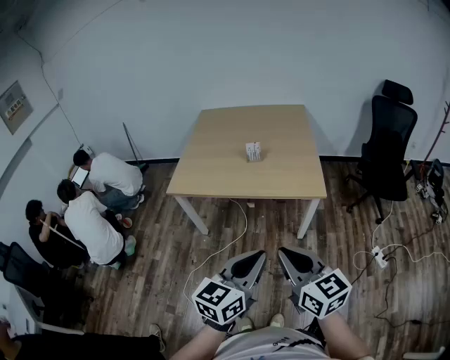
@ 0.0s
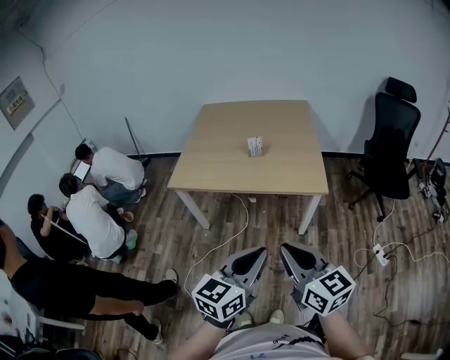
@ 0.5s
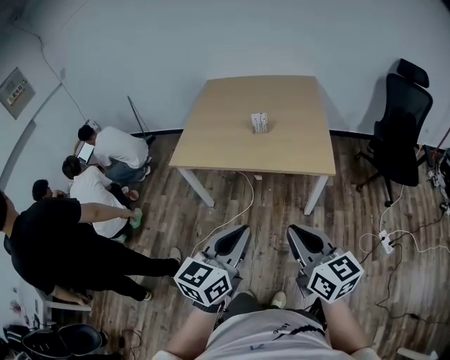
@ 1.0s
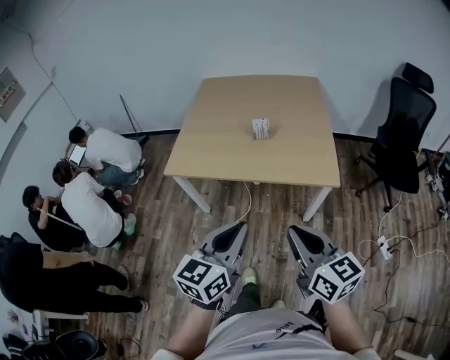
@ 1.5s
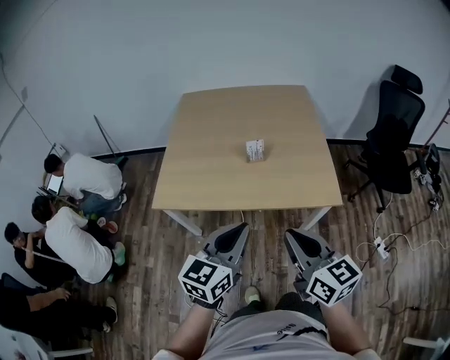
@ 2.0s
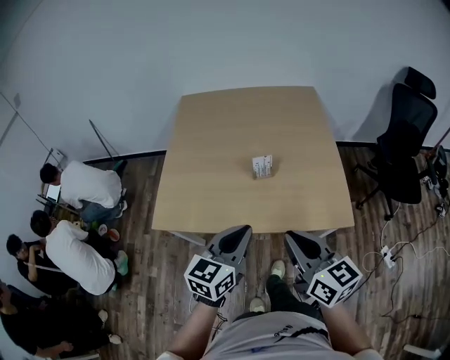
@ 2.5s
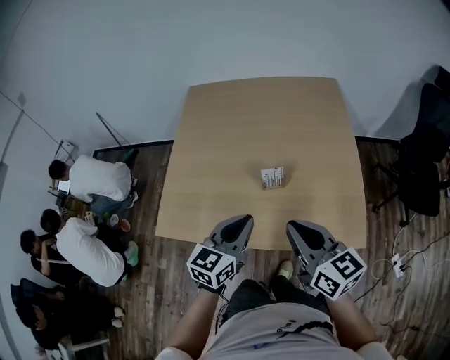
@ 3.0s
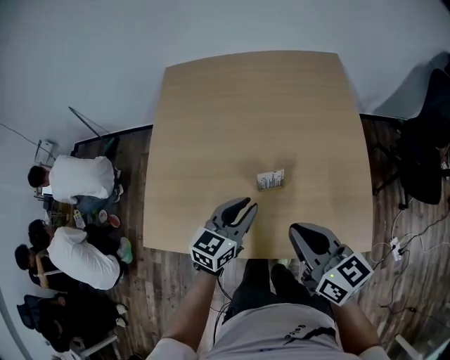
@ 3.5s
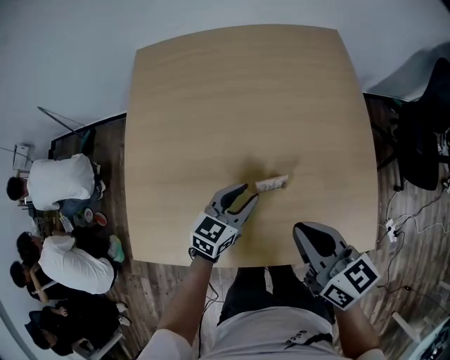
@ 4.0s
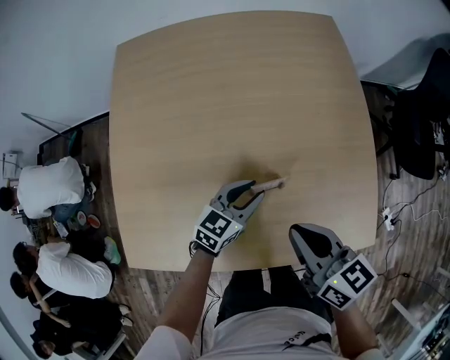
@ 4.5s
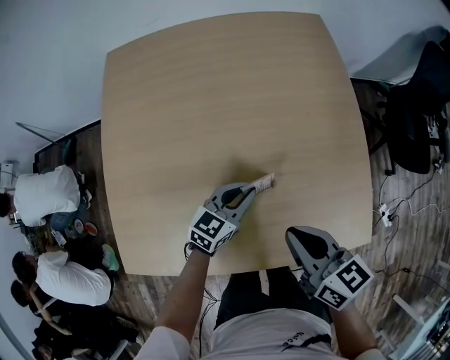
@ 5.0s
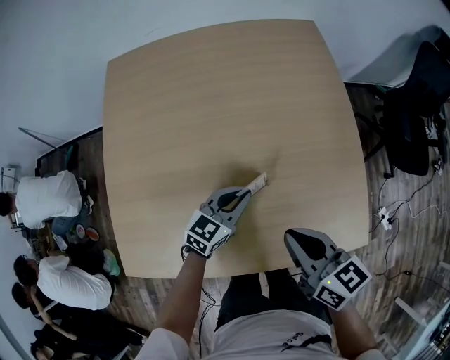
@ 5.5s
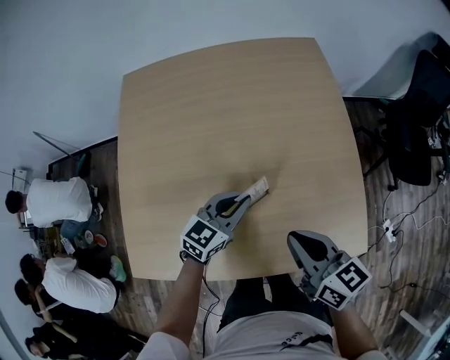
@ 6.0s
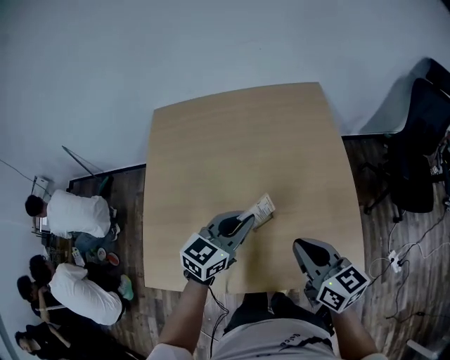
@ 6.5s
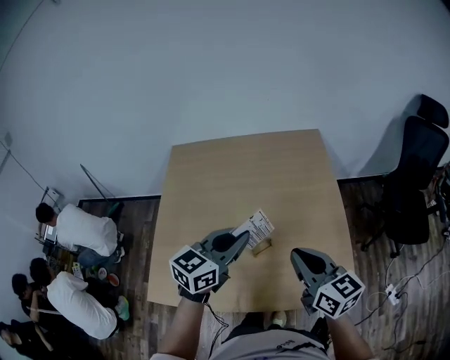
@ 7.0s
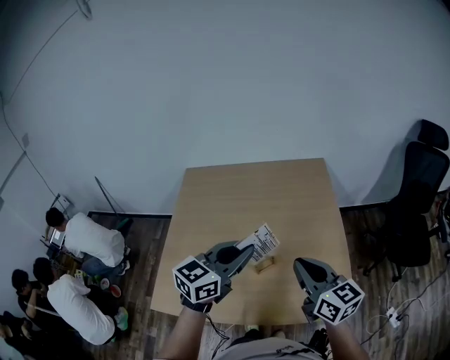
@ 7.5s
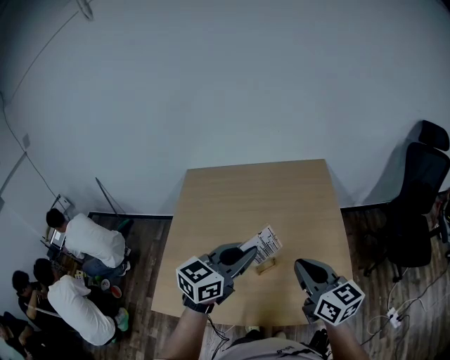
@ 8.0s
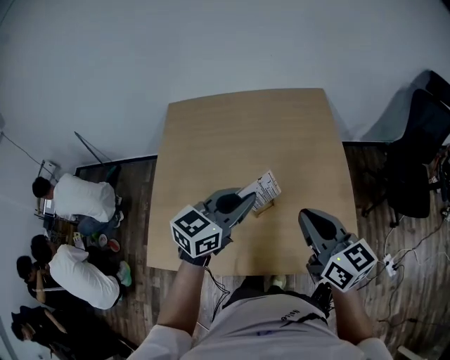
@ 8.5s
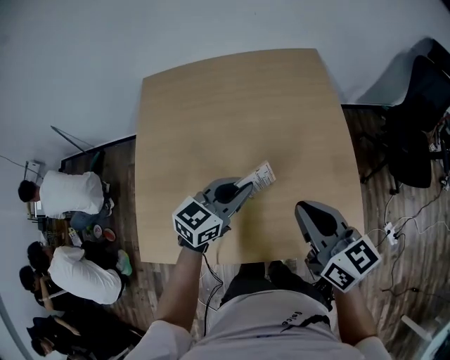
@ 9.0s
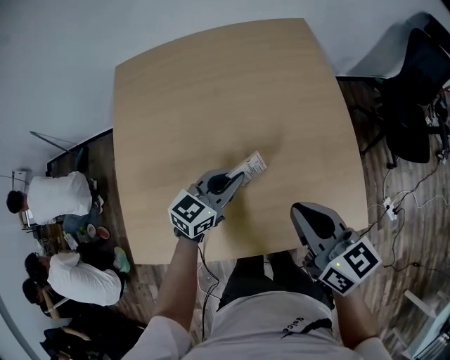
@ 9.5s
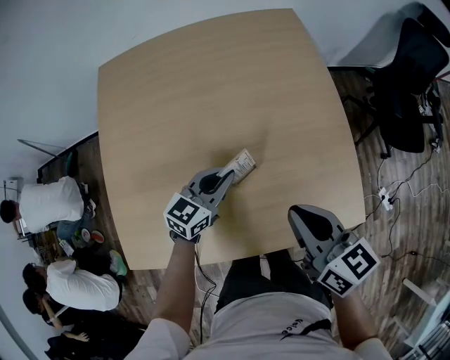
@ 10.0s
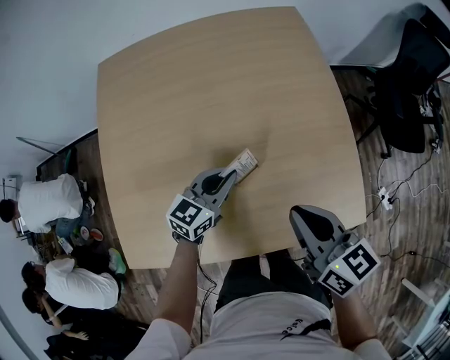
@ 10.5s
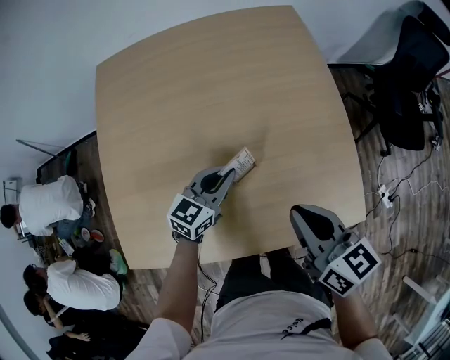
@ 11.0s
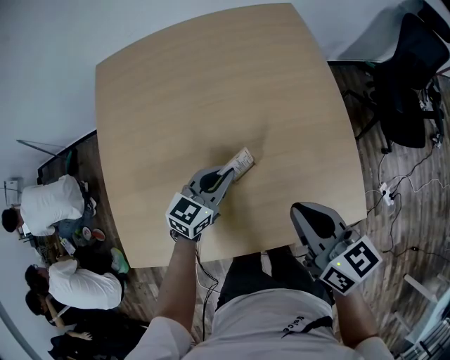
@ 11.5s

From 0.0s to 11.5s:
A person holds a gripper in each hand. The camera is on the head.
From 0.0s to 2.0s: The two grippers go approximately 25 cm forward.
From 2.0s to 4.0s: The two grippers travel together, forward, roughly 50 cm. The left gripper shifts some 30 cm downward, turns by about 20 degrees, and opens.
From 4.0s to 6.0s: The left gripper changes place by about 5 cm, and closes up.
From 6.0s to 7.5s: The right gripper moves upward, roughly 20 cm; the left gripper heads upward, covering some 30 cm.
From 7.5s to 9.5s: The right gripper heads downward, covering approximately 15 cm; the left gripper shifts roughly 30 cm downward.
From 9.5s to 11.5s: The grippers make only small movements.

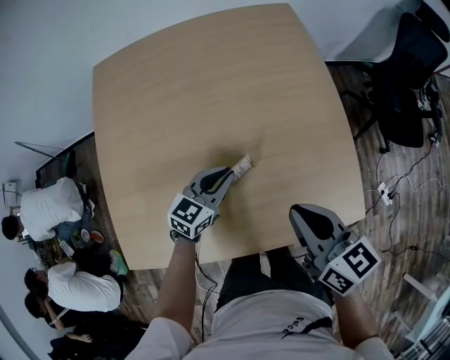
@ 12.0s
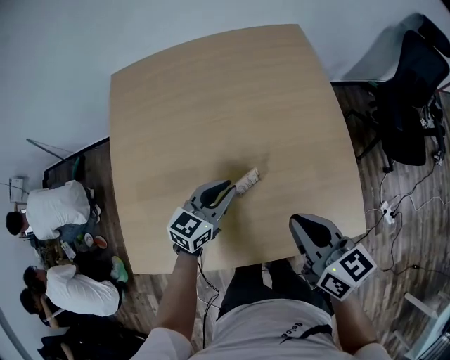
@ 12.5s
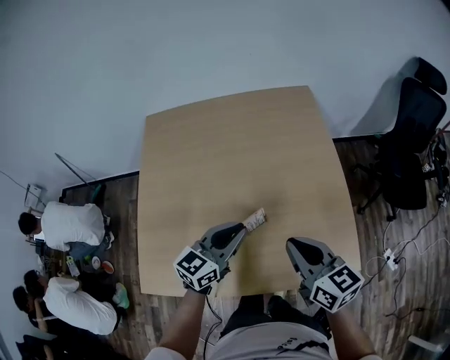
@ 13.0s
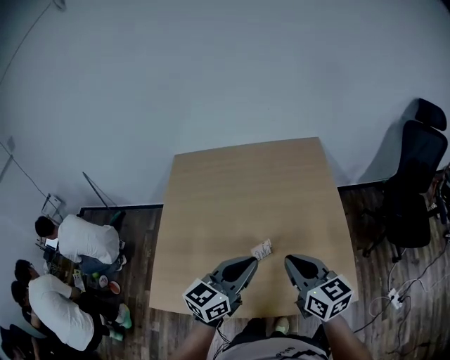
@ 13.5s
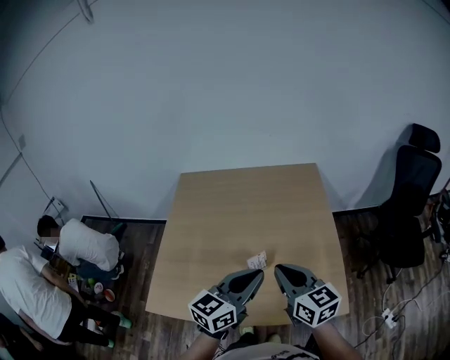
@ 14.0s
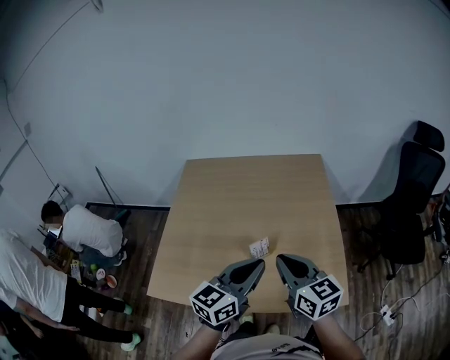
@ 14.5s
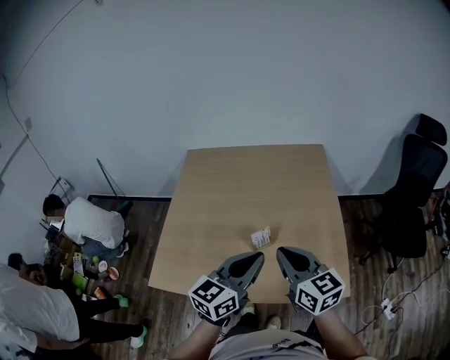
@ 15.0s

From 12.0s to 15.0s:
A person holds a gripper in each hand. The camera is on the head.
From 12.0s to 13.5s: The left gripper is displaced upward by about 25 cm, and changes its angle by some 20 degrees. Meanwhile the right gripper goes some 10 cm upward.
From 13.5s to 15.0s: The grippers both shift backward by some 5 cm.

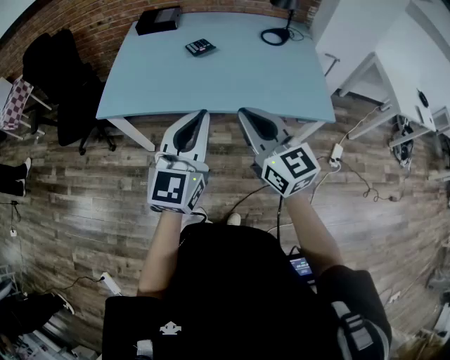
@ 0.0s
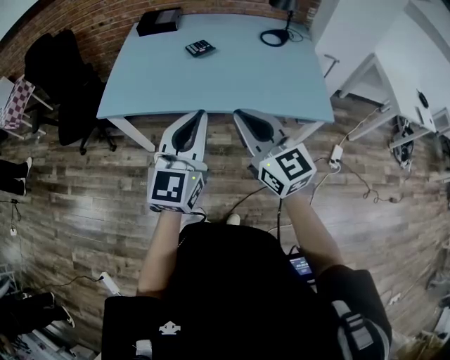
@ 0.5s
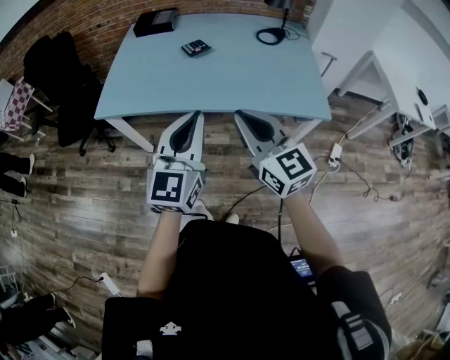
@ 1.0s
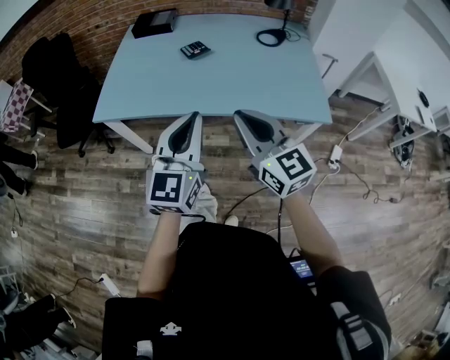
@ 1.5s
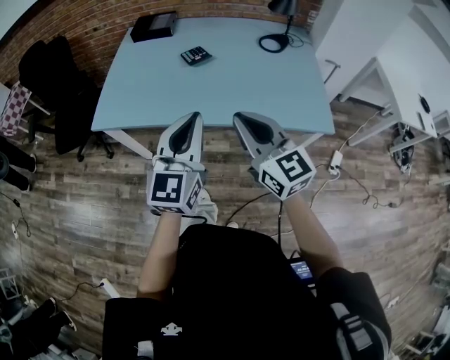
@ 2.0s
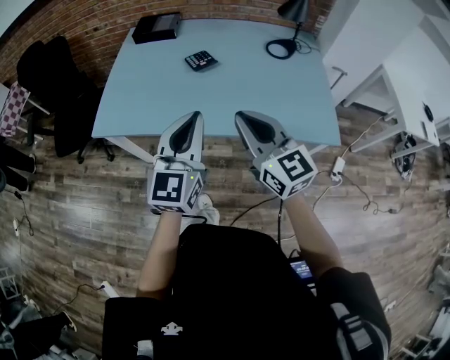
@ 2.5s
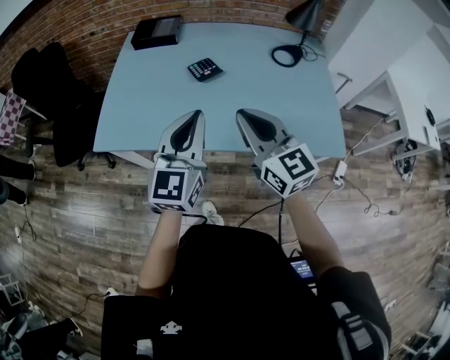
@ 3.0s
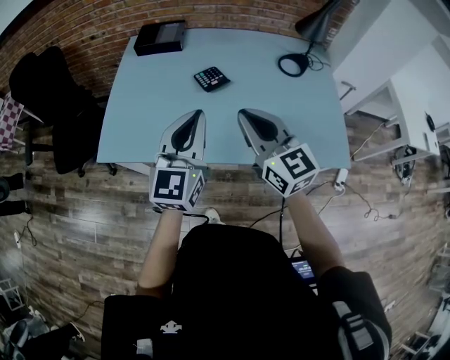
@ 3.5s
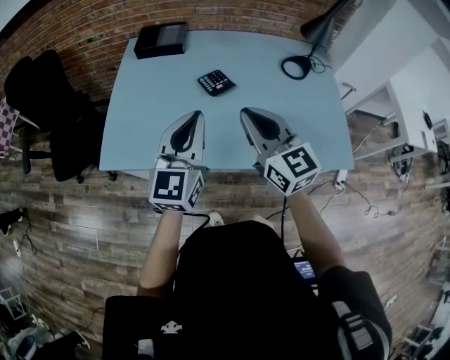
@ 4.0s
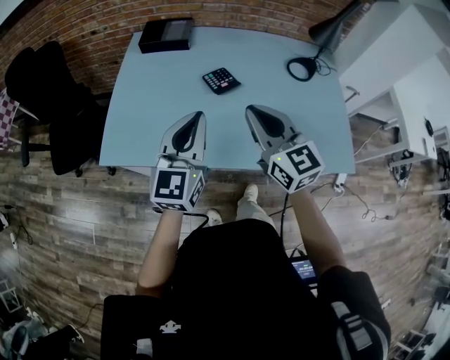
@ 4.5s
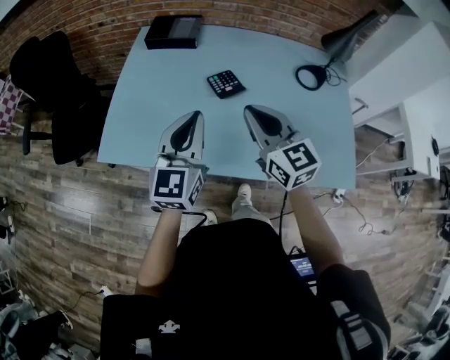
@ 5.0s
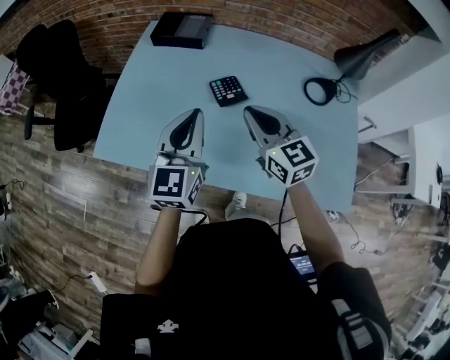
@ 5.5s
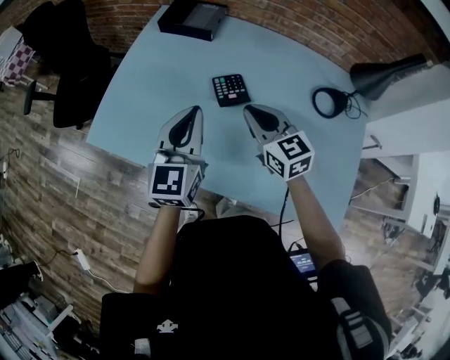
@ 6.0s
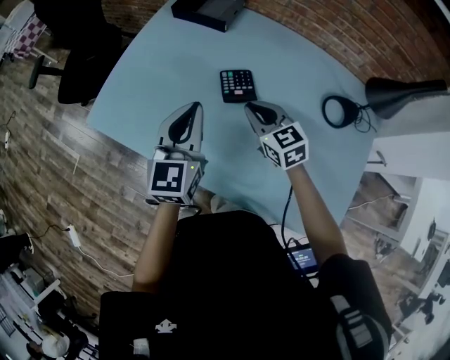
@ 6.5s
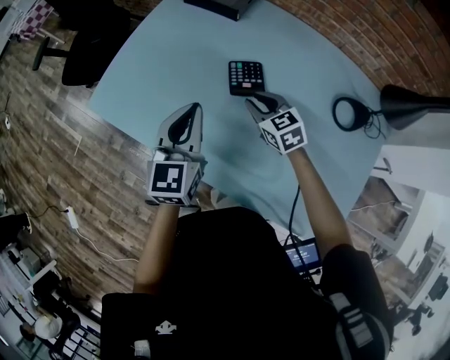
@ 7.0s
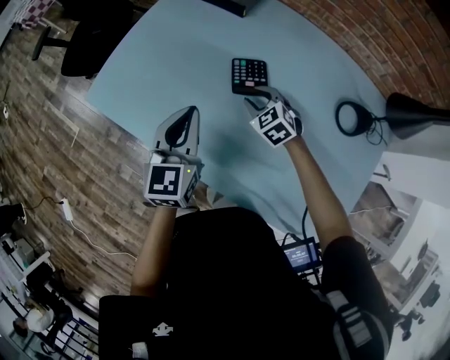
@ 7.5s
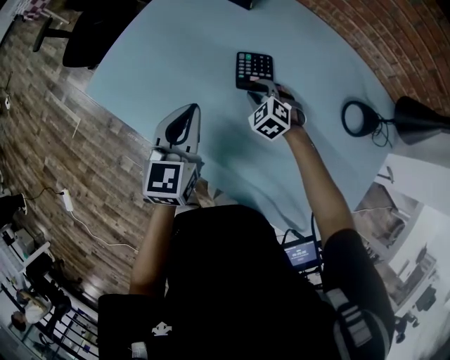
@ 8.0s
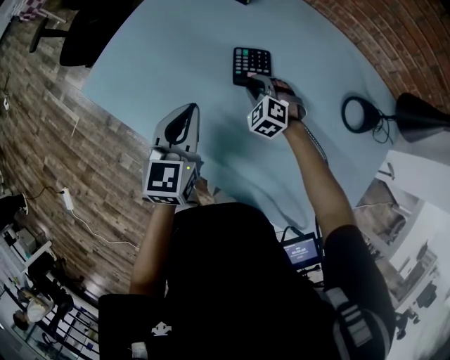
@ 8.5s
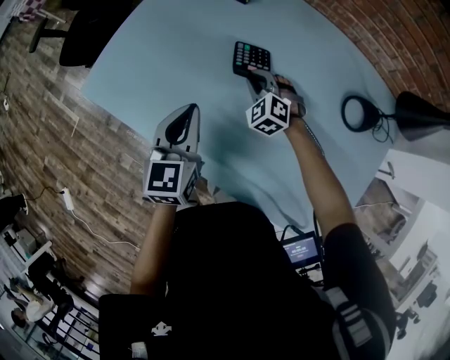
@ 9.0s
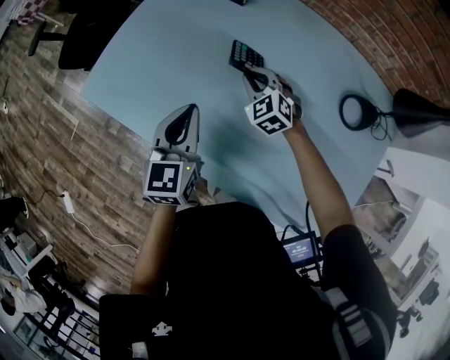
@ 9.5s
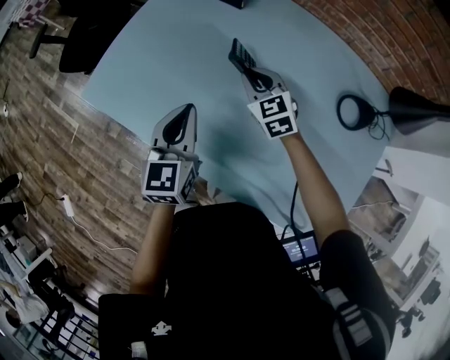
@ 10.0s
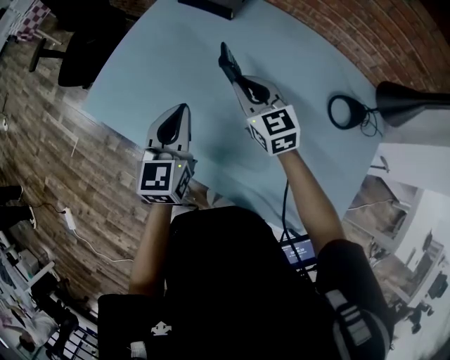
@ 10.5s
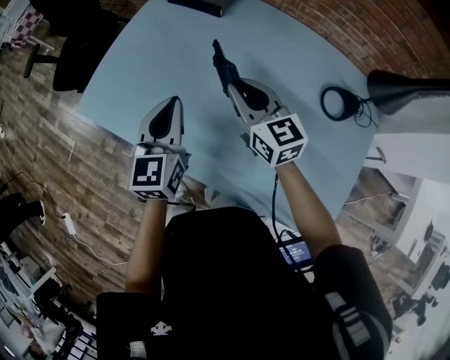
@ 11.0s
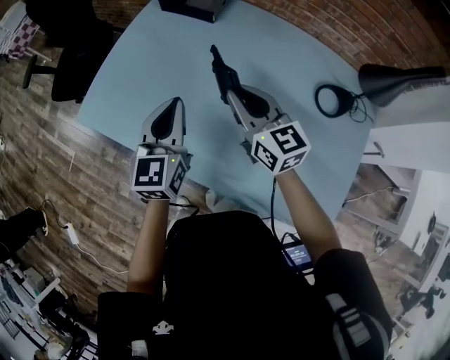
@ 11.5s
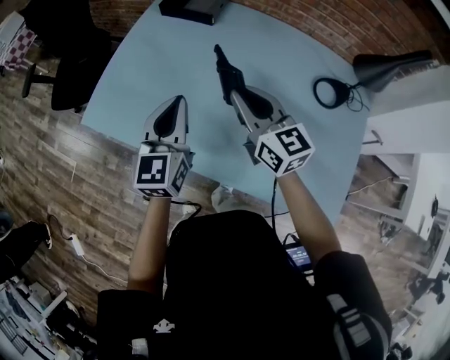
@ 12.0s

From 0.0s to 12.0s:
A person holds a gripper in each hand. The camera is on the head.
From 0.0s to 2.0s: The right gripper changes place by some 5 cm, while the left gripper travels forward by approximately 5 cm.
From 2.0s to 4.0s: The grippers both shift forward by about 20 cm.
From 4.0s to 6.0s: The left gripper shifts approximately 15 cm forward and downward, and rotates some 20 degrees, while the right gripper shifts some 20 cm forward and downward, and rotates roughly 30 degrees.
From 6.0s to 8.0s: The left gripper is displaced downward by about 10 cm. Meanwhile the right gripper goes about 25 cm downward, tips its fingers downward by some 30 degrees, and opens.
From 8.0s to 10.0s: The right gripper is displaced upward by some 10 cm, and turns by about 30 degrees.
From 10.0s to 12.0s: The right gripper moves upward and backward, roughly 20 cm, and changes its angle by some 30 degrees; the left gripper moves upward, approximately 10 cm.
